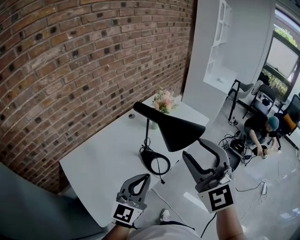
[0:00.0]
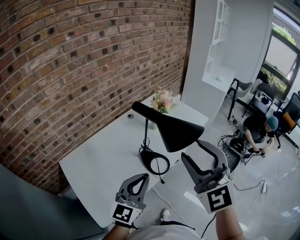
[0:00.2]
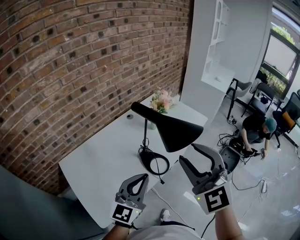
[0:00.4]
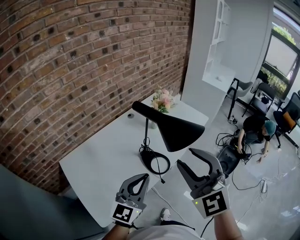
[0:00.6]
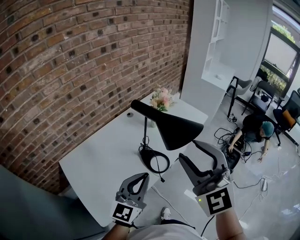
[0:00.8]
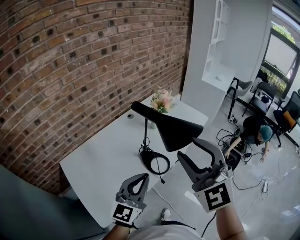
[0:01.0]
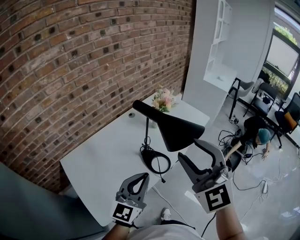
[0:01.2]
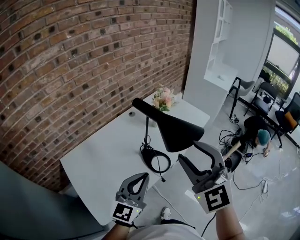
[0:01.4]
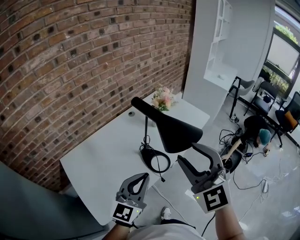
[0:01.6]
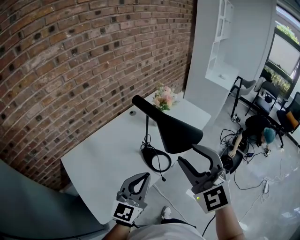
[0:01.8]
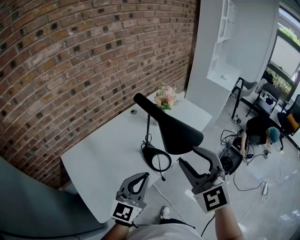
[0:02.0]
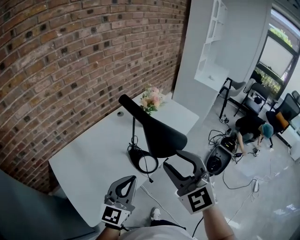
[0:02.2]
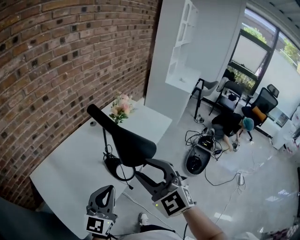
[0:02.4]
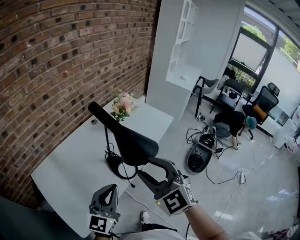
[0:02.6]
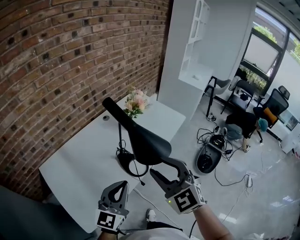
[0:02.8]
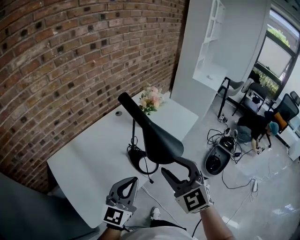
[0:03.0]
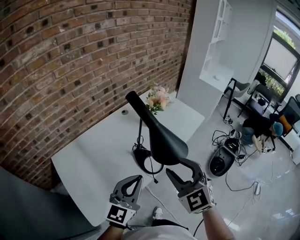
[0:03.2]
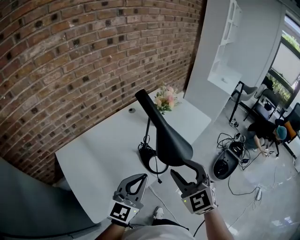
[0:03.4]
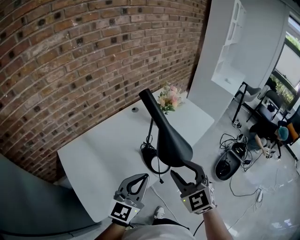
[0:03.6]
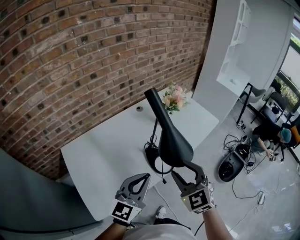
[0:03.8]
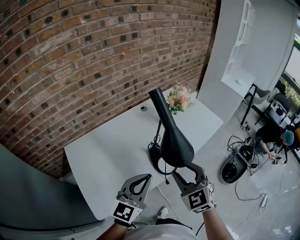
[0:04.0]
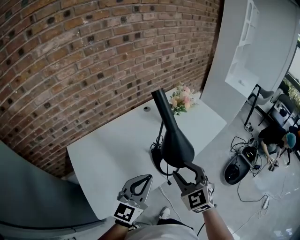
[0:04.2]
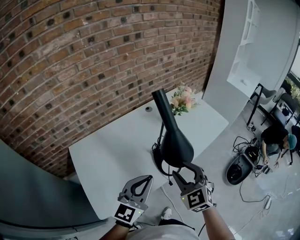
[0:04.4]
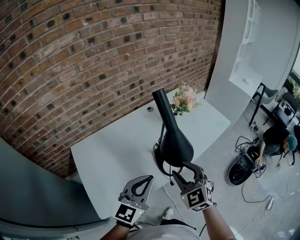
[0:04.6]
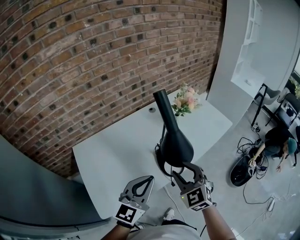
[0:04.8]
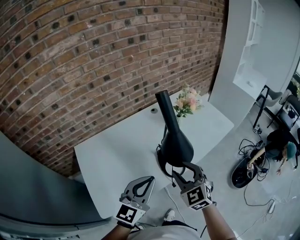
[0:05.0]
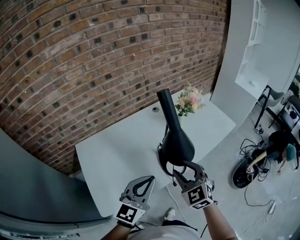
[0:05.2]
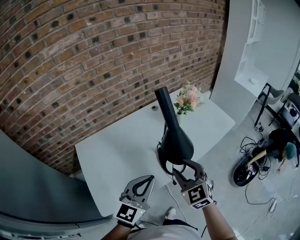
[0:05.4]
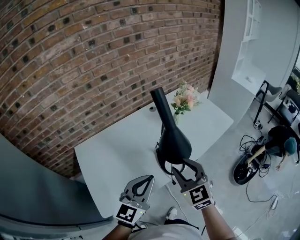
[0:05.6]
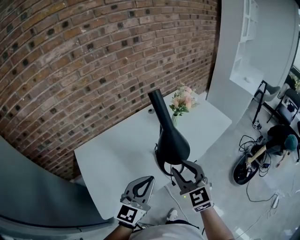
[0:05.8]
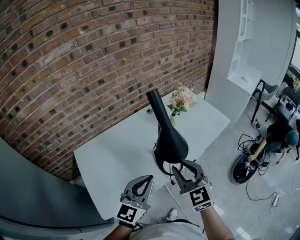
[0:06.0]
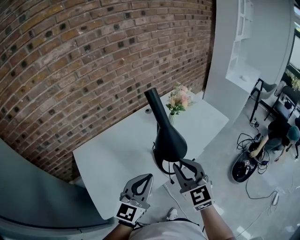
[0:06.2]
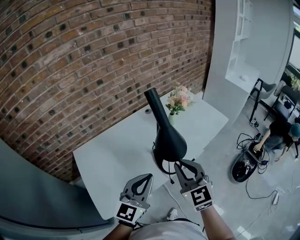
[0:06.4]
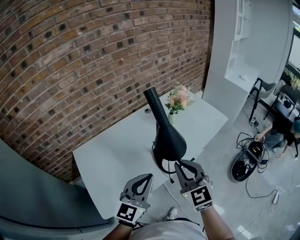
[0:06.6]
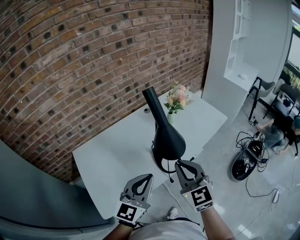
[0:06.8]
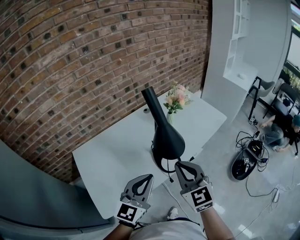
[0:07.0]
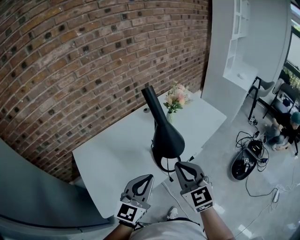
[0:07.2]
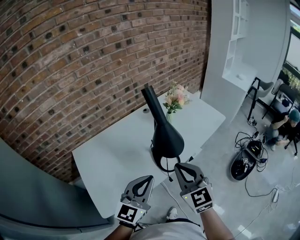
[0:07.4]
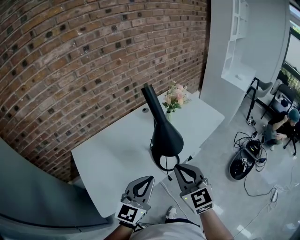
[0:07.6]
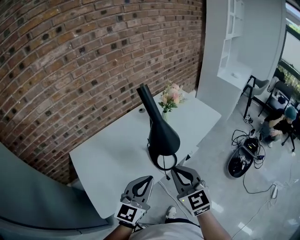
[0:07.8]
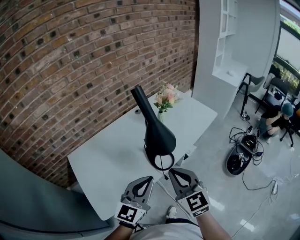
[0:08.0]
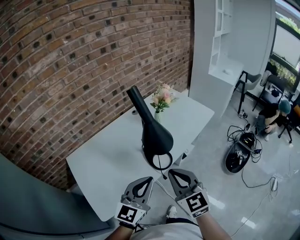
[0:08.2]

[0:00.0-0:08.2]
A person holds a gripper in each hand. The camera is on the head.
0:00.0 to 0:01.6: The grippers stay close to where they were, moving slightly.
0:01.6 to 0:03.2: The right gripper goes roughly 10 cm downward.
0:03.2 to 0:05.0: The right gripper heads downward, covering about 10 cm.
0:05.0 to 0:06.6: The right gripper moves upward, some 5 cm, and closes up.
0:06.6 to 0:08.2: The left gripper ends up roughly 5 cm from where it was. Meanwhile the right gripper moves backward, roughly 5 cm.

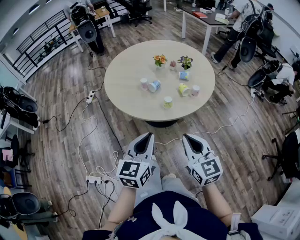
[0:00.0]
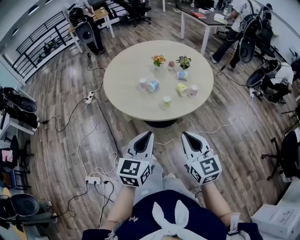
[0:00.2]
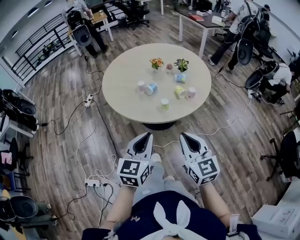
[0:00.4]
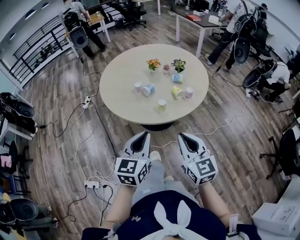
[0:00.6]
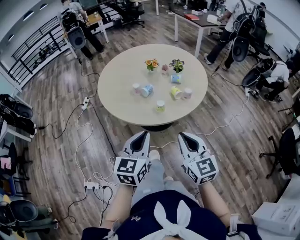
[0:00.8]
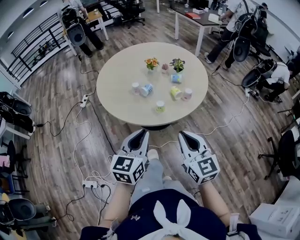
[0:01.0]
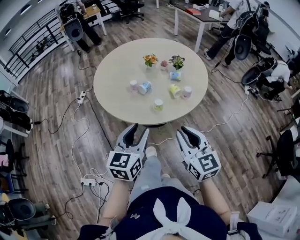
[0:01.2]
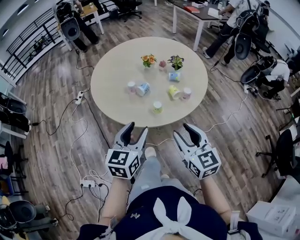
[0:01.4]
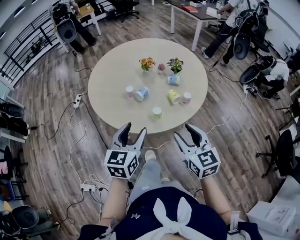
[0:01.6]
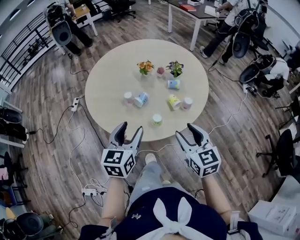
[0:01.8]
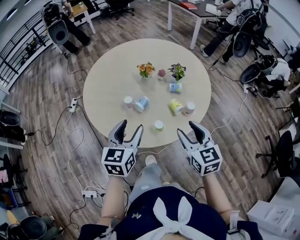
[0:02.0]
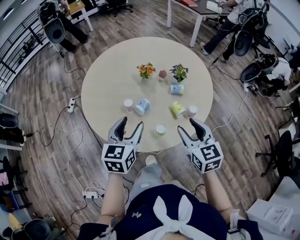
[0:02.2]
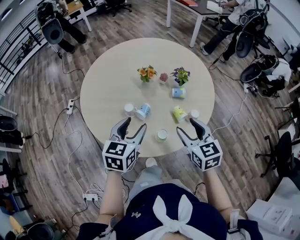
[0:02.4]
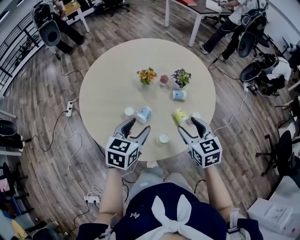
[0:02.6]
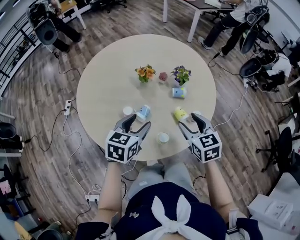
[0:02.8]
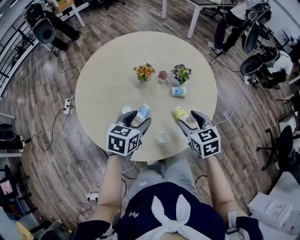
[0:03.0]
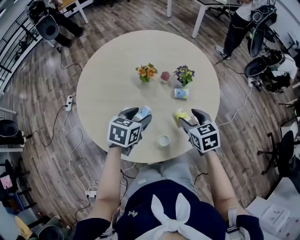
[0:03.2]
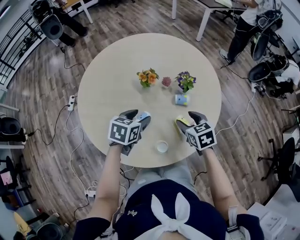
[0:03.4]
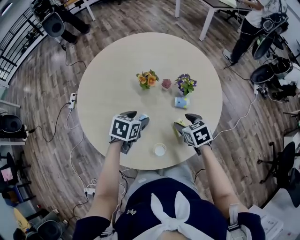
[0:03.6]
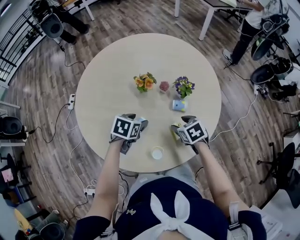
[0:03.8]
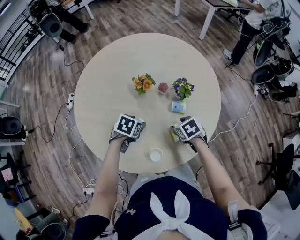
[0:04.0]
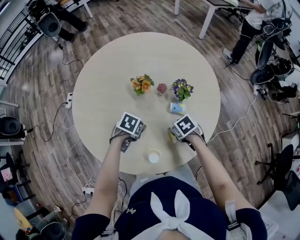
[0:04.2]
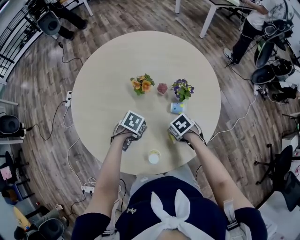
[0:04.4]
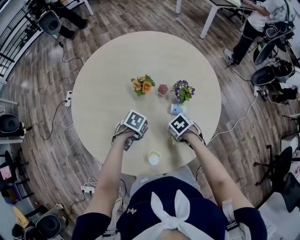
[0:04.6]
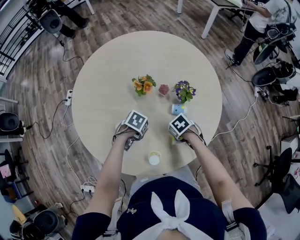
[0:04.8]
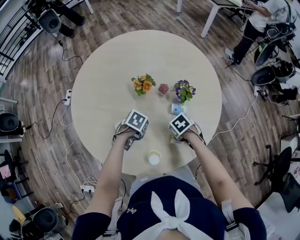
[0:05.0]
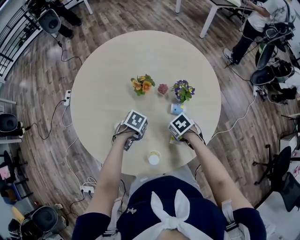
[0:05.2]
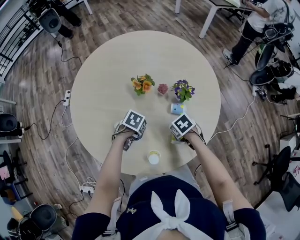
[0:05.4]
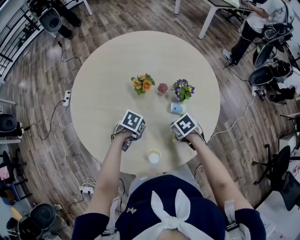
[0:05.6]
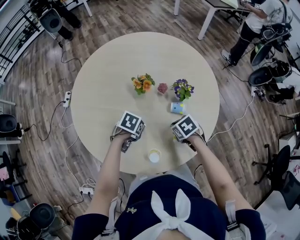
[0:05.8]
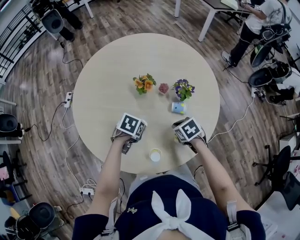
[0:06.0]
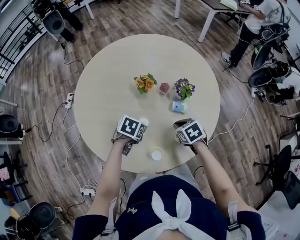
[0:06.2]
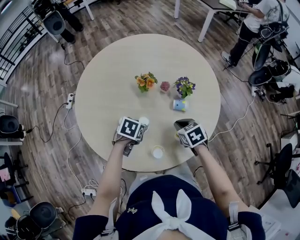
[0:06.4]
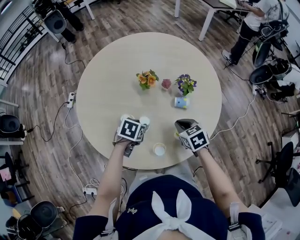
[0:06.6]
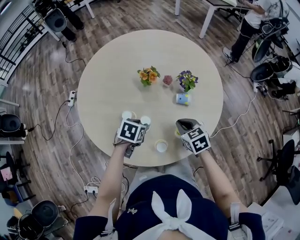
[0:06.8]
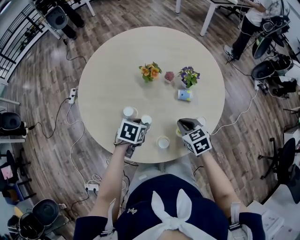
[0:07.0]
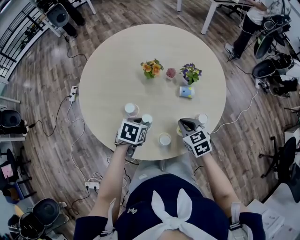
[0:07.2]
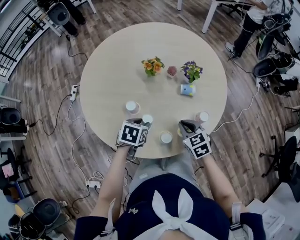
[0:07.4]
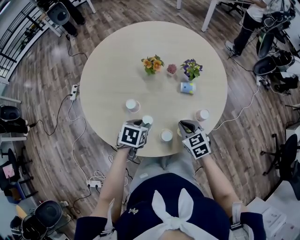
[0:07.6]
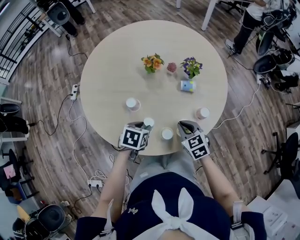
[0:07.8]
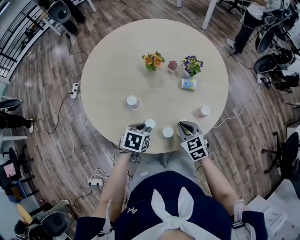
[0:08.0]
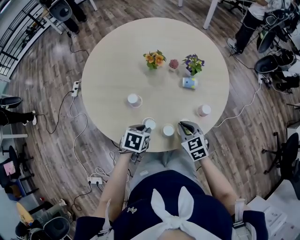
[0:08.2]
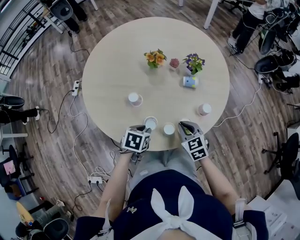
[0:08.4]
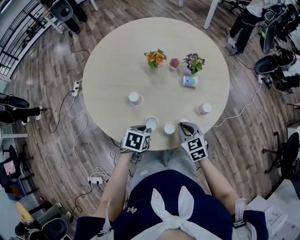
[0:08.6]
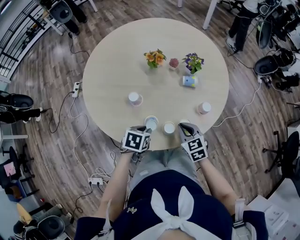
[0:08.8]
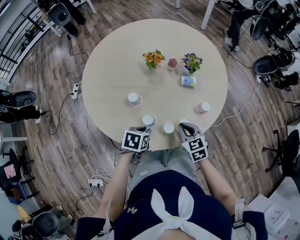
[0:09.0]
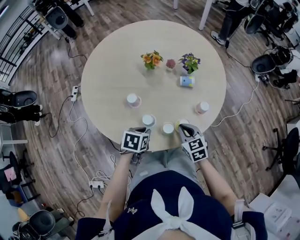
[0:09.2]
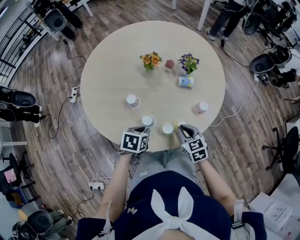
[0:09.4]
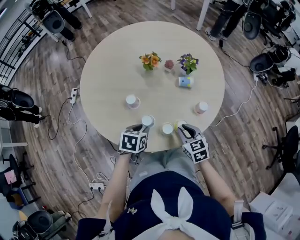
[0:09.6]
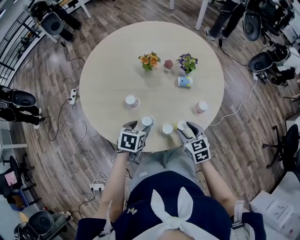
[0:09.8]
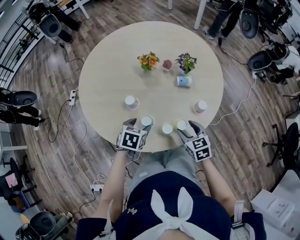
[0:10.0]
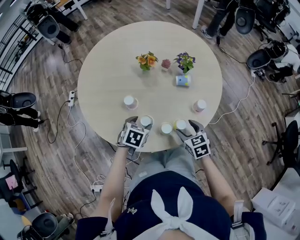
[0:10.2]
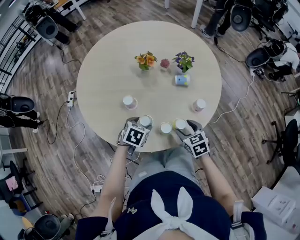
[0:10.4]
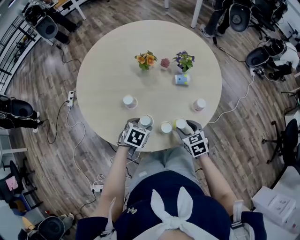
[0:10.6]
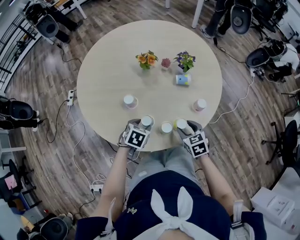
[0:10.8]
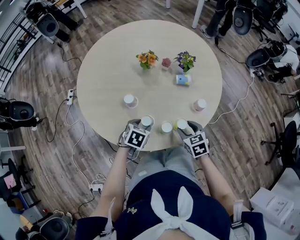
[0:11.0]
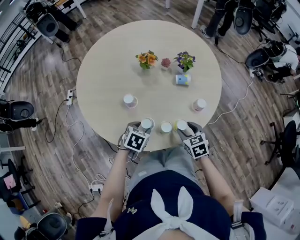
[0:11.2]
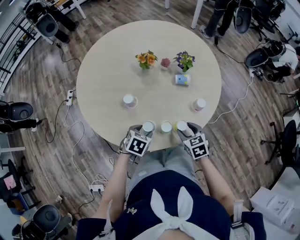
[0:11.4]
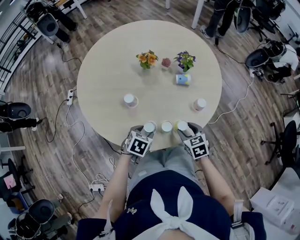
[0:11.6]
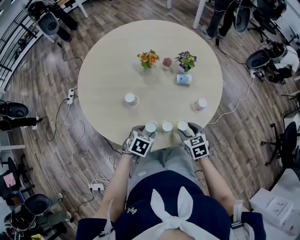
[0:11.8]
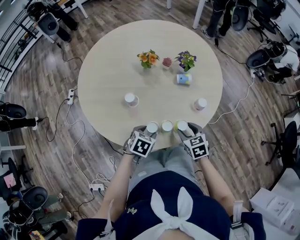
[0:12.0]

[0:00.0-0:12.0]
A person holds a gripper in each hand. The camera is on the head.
0:00.0 to 0:01.6: Both grippers travel together forward, about 15 cm. The right gripper opens its fingers. Meanwhile the left gripper opens up.
0:01.6 to 0:03.0: Both grippers travel together forward, approximately 25 cm. The left gripper swivels about 30 degrees; the right gripper rotates some 20 degrees.
0:03.0 to 0:04.4: Both grippers move downward, roughly 15 cm. The right gripper angles its fingers downward, by some 40 degrees, while the left gripper angles its fingers downward, by some 40 degrees.
0:04.4 to 0:06.0: The right gripper closes up.
0:06.0 to 0:07.6: The two grippers go roughly 10 cm backward. The right gripper changes its angle by roughly 30 degrees.
0:07.6 to 0:09.0: The left gripper shifts about 5 cm backward.
0:09.0 to 0:10.4: The left gripper opens. The right gripper opens its fingers.
0:10.4 to 0:12.0: The left gripper goes approximately 5 cm backward.

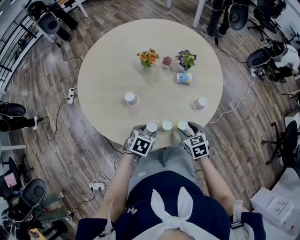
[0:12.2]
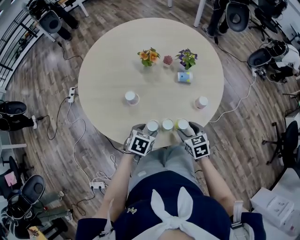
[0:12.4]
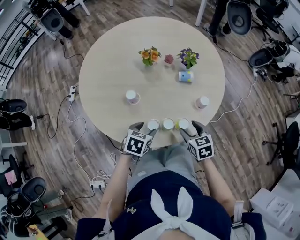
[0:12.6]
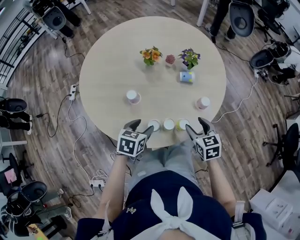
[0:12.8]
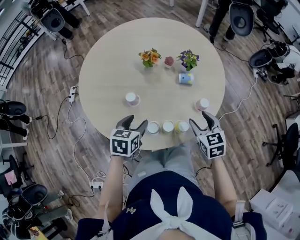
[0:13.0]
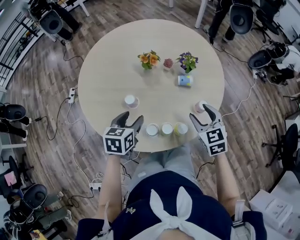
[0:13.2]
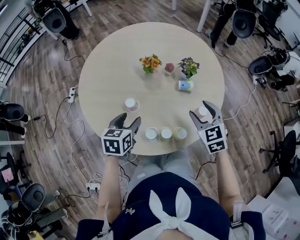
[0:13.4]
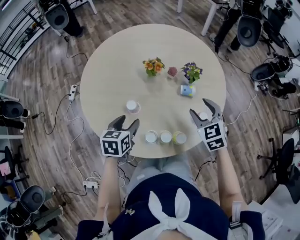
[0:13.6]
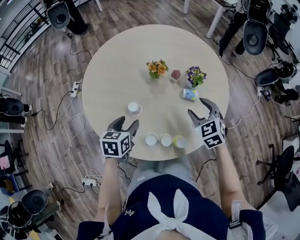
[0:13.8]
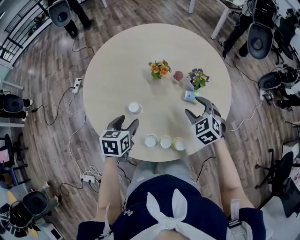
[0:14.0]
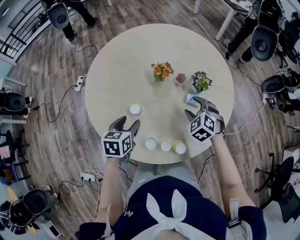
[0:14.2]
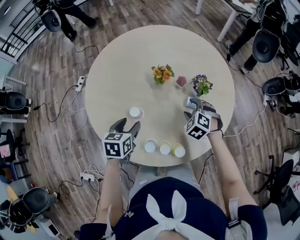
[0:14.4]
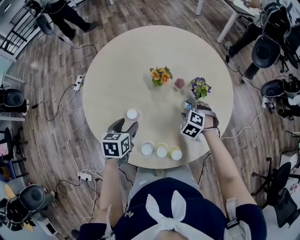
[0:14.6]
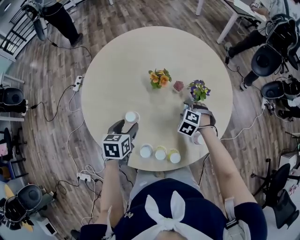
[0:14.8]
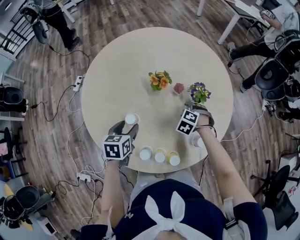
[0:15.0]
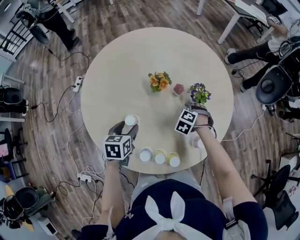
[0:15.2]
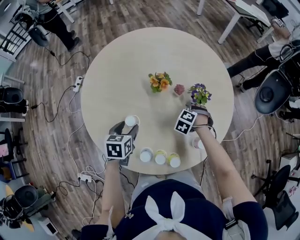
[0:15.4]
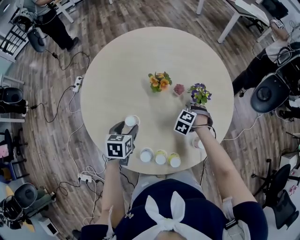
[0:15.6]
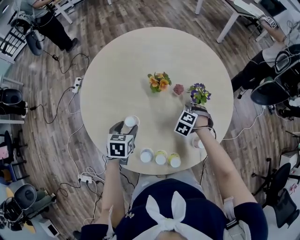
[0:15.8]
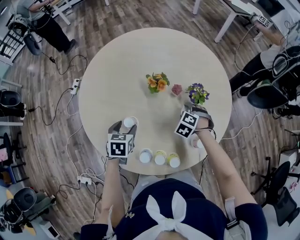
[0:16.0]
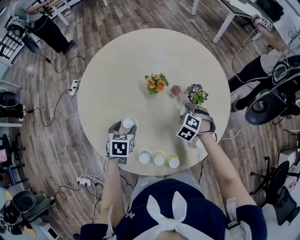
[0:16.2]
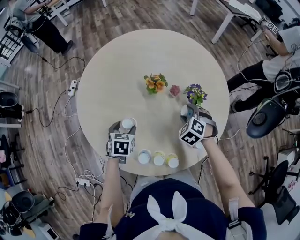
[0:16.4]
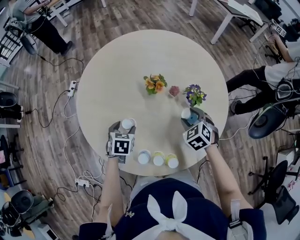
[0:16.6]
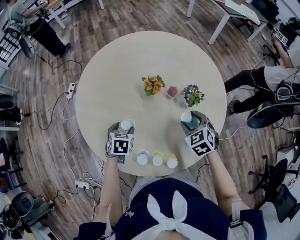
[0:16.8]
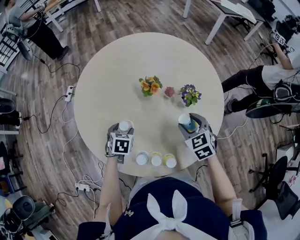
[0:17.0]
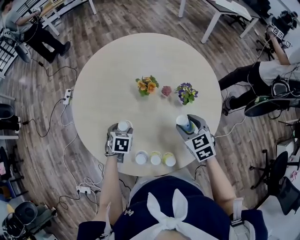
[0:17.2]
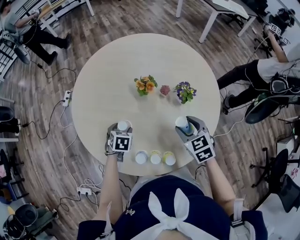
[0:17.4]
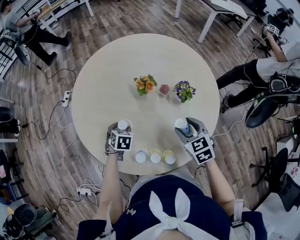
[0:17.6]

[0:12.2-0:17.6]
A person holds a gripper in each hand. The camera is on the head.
0:12.2 to 0:13.6: The left gripper heads upward, to the left and forward, covering approximately 15 cm, and turns by some 30 degrees; the right gripper travels upward and forward by some 20 cm, and rotates about 30 degrees.
0:13.6 to 0:15.0: The left gripper goes roughly 5 cm forward. The right gripper moves downward and forward, roughly 20 cm, and tilts its fingers approximately 40 degrees downward.
0:15.0 to 0:16.2: The grippers move only a little.
0:16.2 to 0:17.6: The right gripper shifts approximately 15 cm upward and backward, and rotates approximately 50 degrees.
